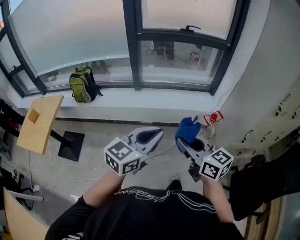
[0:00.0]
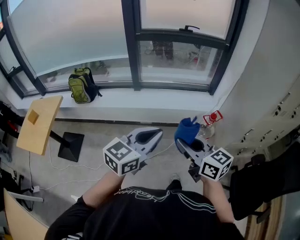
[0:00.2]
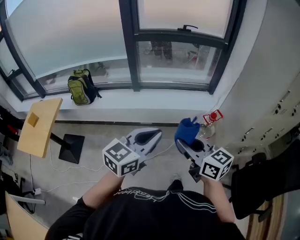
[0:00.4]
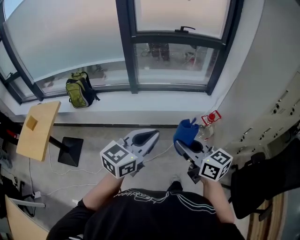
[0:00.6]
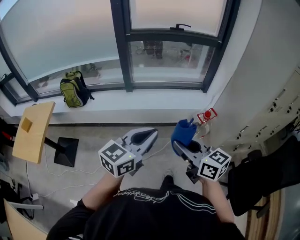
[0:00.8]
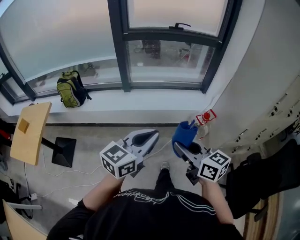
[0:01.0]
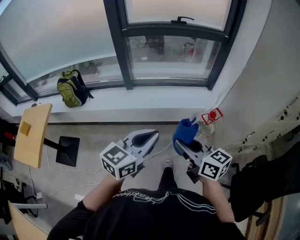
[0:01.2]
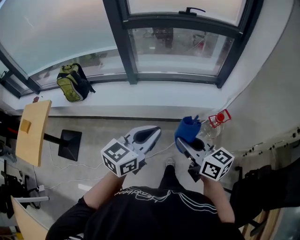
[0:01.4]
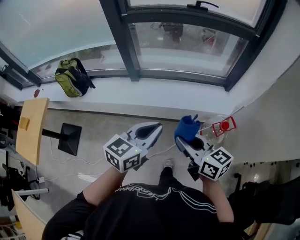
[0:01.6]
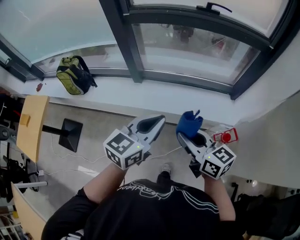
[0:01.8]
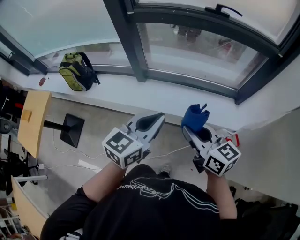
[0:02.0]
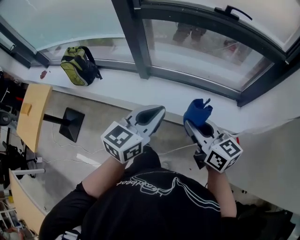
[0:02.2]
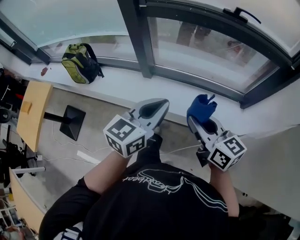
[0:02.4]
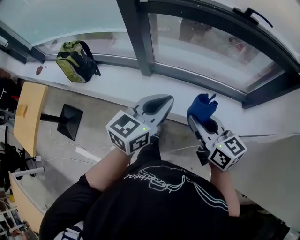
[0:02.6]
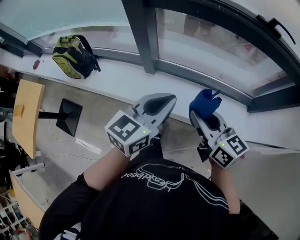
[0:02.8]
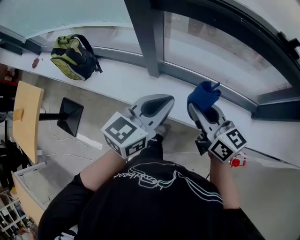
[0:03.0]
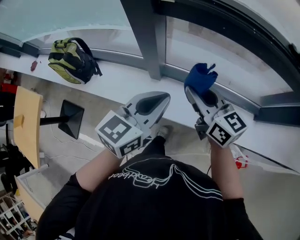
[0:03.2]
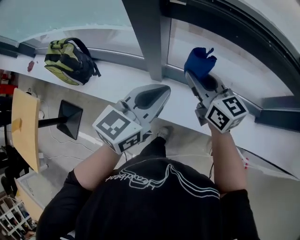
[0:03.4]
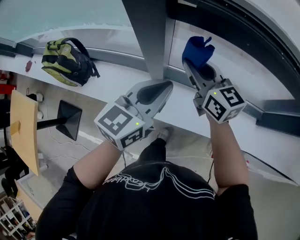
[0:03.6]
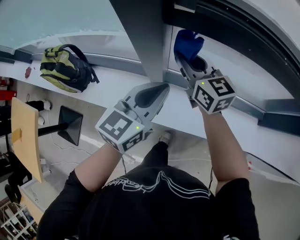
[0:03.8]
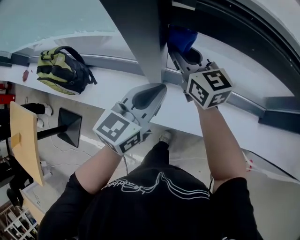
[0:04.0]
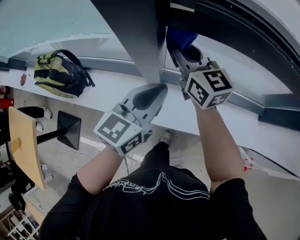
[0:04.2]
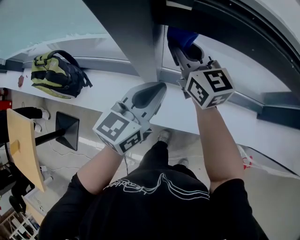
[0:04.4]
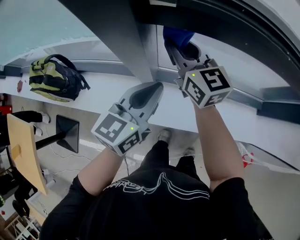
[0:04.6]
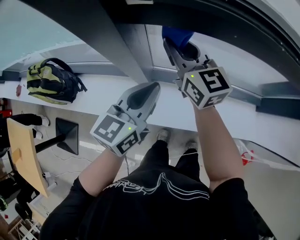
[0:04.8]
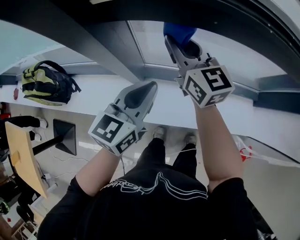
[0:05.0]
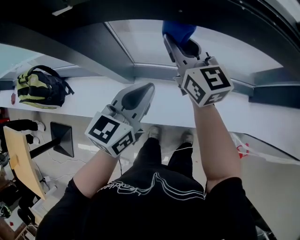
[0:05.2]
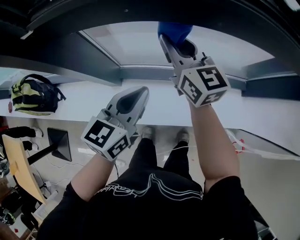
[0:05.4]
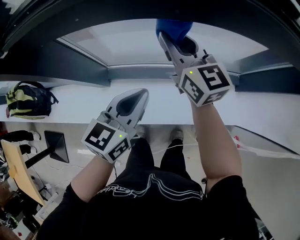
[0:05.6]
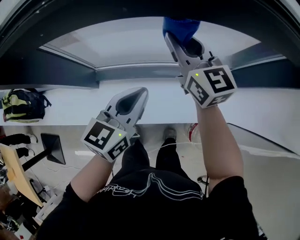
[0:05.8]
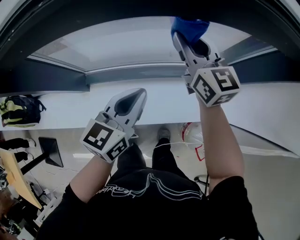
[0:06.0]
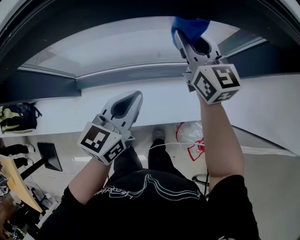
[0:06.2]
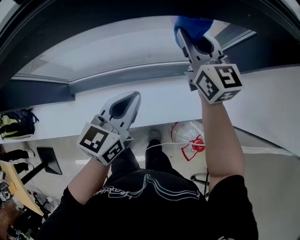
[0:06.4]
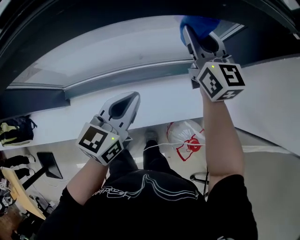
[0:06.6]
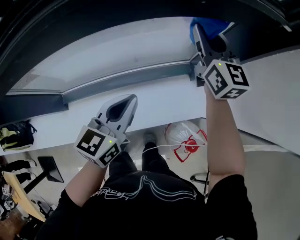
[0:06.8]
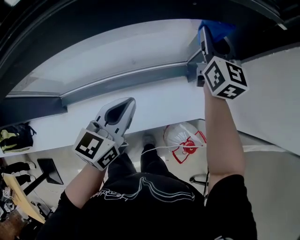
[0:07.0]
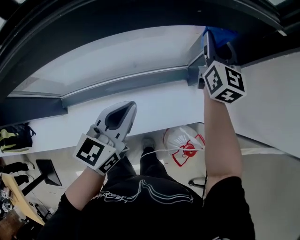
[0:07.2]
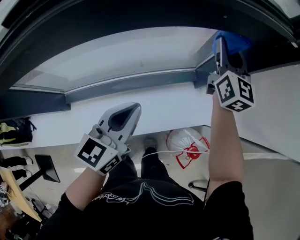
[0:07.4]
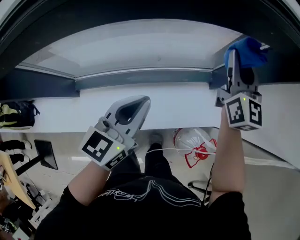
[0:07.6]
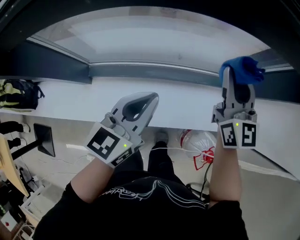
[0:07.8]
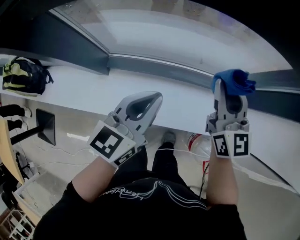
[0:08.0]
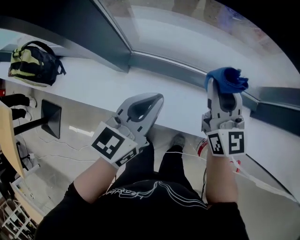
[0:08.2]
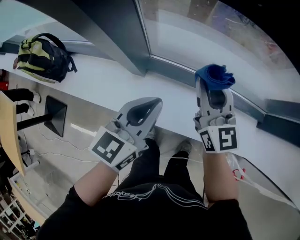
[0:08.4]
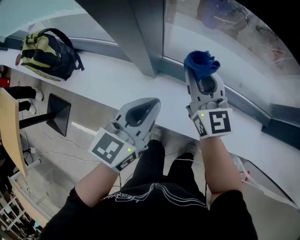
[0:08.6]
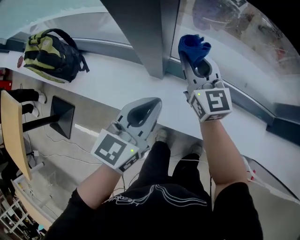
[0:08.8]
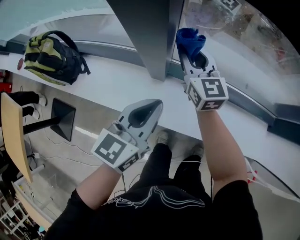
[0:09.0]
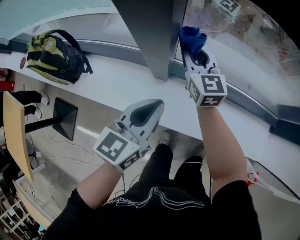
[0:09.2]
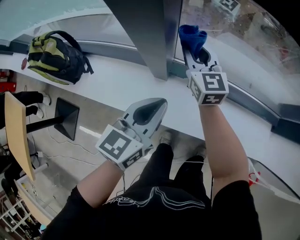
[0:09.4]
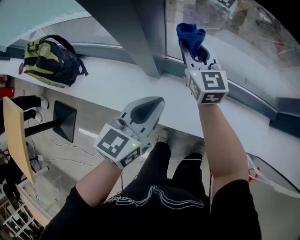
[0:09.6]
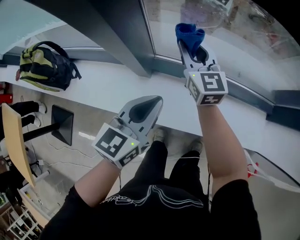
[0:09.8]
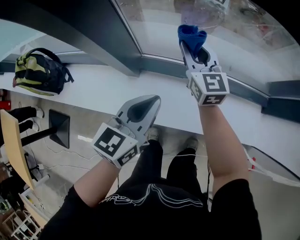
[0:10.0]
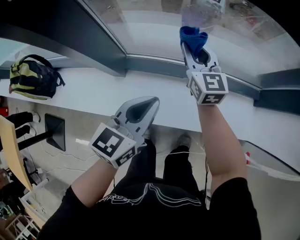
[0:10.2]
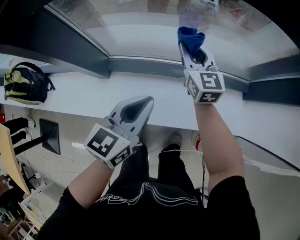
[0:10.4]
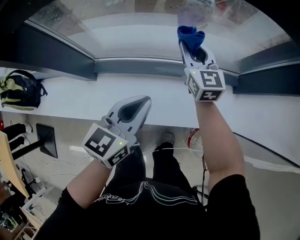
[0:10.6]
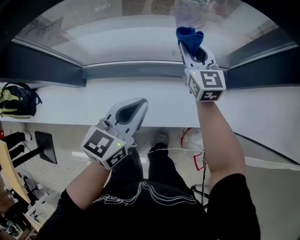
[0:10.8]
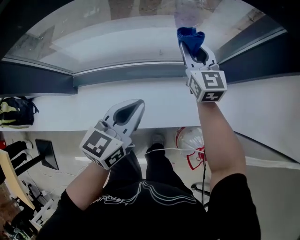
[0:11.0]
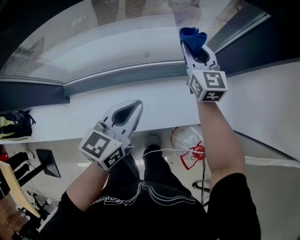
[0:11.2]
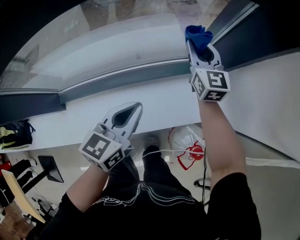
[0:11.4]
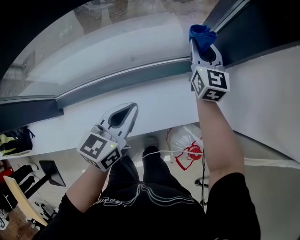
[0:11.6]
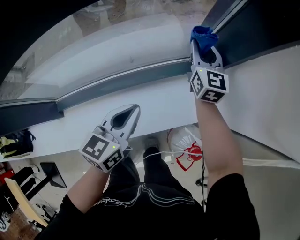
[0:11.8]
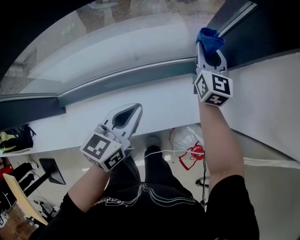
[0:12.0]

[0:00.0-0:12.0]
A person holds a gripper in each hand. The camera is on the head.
0:00.0 to 0:01.6: Both grippers move forward, roughly 30 cm.
0:01.6 to 0:03.0: Both grippers move forward, approximately 40 cm.
0:03.0 to 0:04.4: The right gripper heads forward, covering some 30 cm, and swivels some 20 degrees; the left gripper shifts about 15 cm forward.
0:04.4 to 0:06.0: The two grippers go some 40 cm to the right.
0:06.0 to 0:07.6: The left gripper shifts some 5 cm to the right, while the right gripper goes approximately 20 cm to the right, and changes its angle by roughly 30 degrees.
0:07.6 to 0:09.0: Both grippers are carried roughly 60 cm. The left gripper swivels approximately 20 degrees. The right gripper swivels roughly 40 degrees.
0:09.0 to 0:10.4: Both grippers travel together to the right, approximately 30 cm.
0:10.4 to 0:12.0: The left gripper moves to the right and forward, roughly 30 cm; the right gripper goes roughly 40 cm to the right, and rotates roughly 30 degrees.

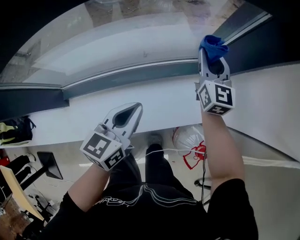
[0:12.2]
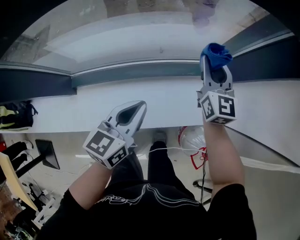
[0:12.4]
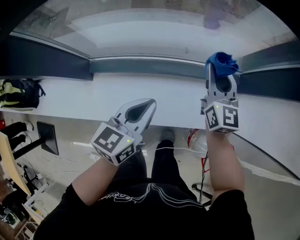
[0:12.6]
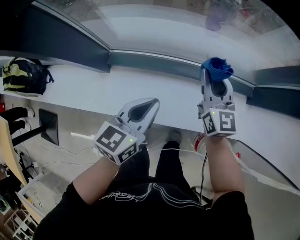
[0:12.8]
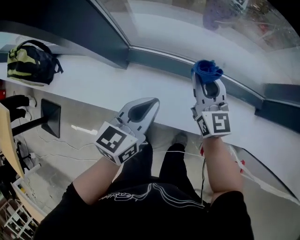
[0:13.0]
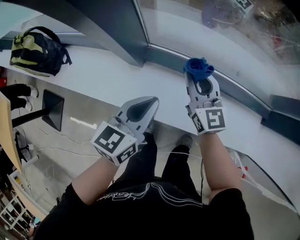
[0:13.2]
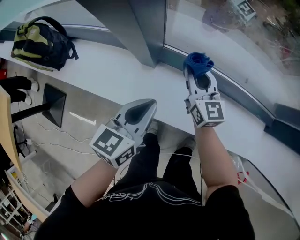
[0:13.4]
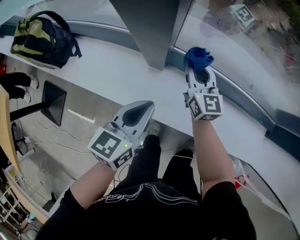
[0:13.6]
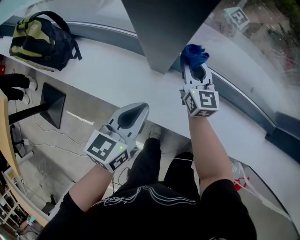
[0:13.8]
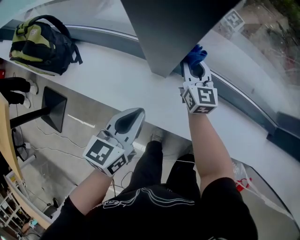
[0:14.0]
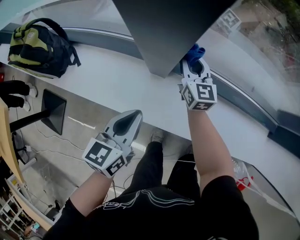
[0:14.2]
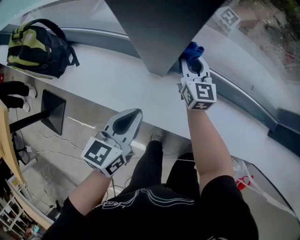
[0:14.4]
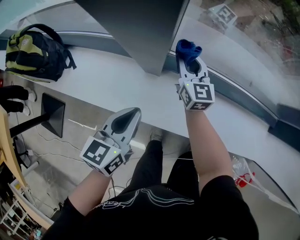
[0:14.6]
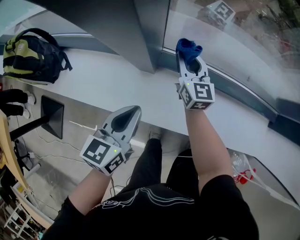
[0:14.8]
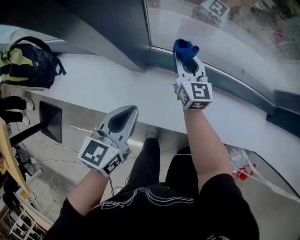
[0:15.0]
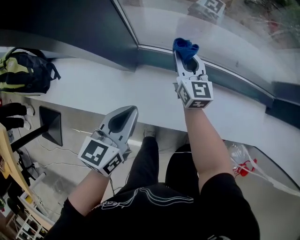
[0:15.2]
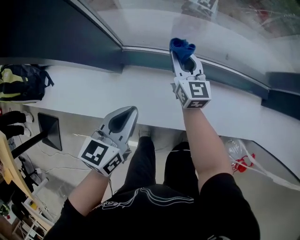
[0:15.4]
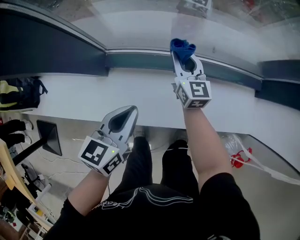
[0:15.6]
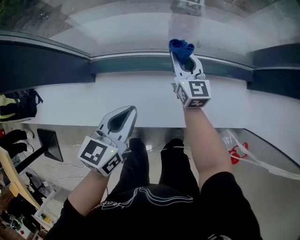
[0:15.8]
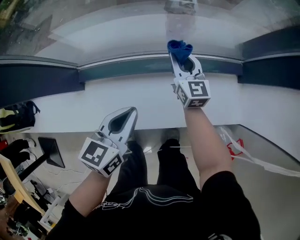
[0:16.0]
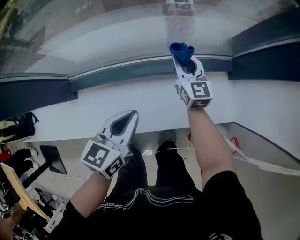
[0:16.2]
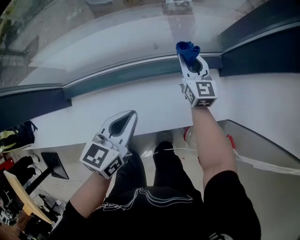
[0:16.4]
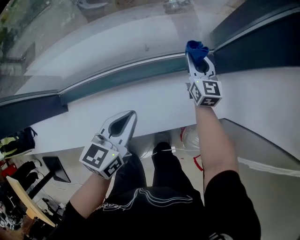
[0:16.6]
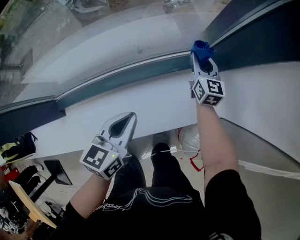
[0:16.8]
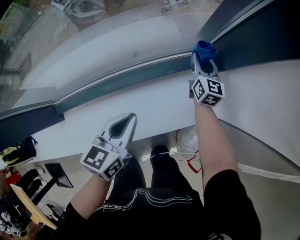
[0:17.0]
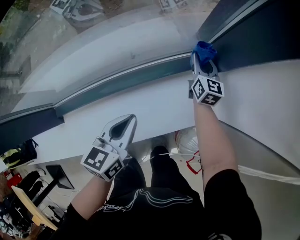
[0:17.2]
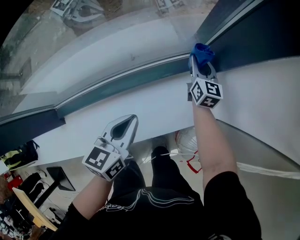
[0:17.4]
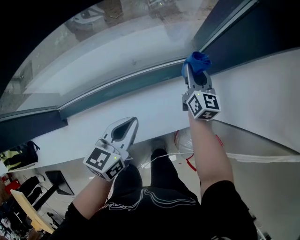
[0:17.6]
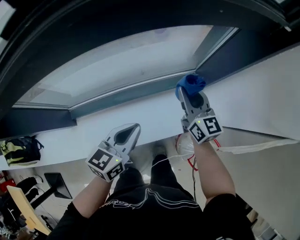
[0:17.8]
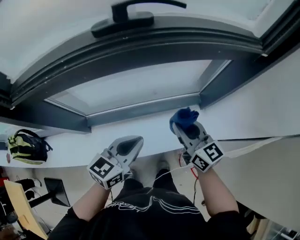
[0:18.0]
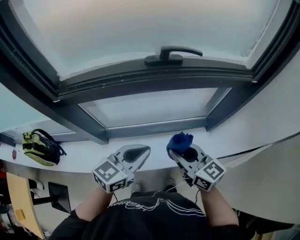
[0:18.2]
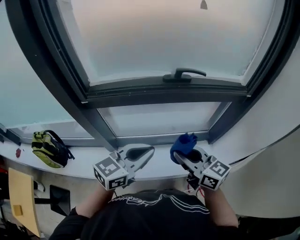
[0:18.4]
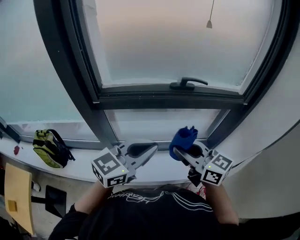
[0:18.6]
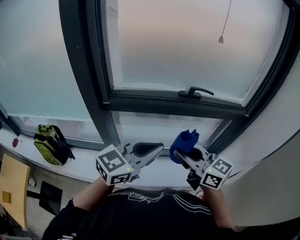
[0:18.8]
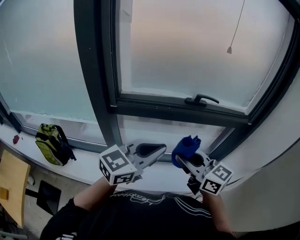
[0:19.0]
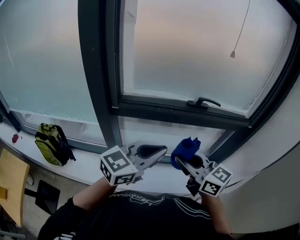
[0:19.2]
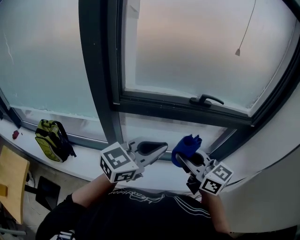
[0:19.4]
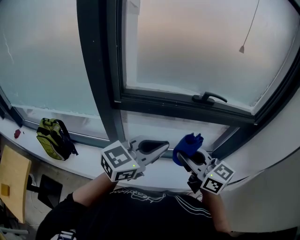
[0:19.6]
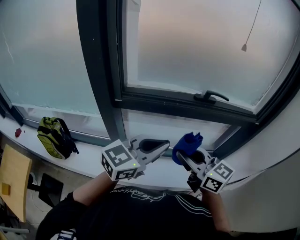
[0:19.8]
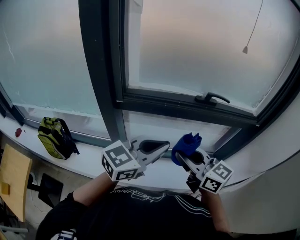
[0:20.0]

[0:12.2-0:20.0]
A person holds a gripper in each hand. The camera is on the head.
0:12.2 to 0:13.8: The pair of grippers is taken approximately 60 cm. The right gripper rotates roughly 40 degrees. Meanwhile the left gripper rotates about 30 degrees.
0:13.8 to 0:15.4: Both grippers move to the right, roughly 20 cm.
0:15.4 to 0:16.8: The right gripper moves some 60 cm, and turns by about 30 degrees. Meanwhile the left gripper changes place by approximately 40 cm, and turns by roughly 20 degrees.
0:16.8 to 0:18.4: The right gripper shifts roughly 70 cm upward, backward and to the left, and turns by approximately 50 degrees, while the left gripper goes some 50 cm upward and backward, and swivels about 30 degrees.
0:18.4 to 0:20.0: The left gripper is displaced upward and to the left by about 10 cm; the right gripper heads to the left and upward, covering about 15 cm.

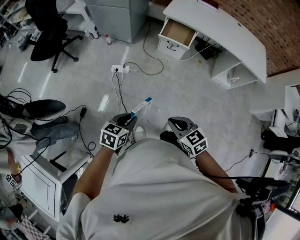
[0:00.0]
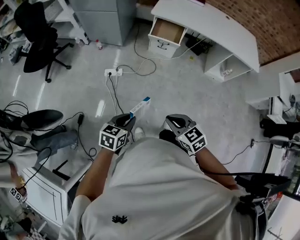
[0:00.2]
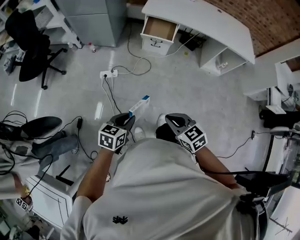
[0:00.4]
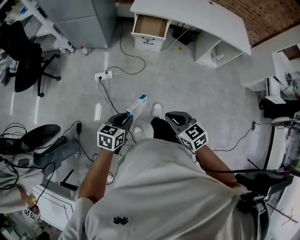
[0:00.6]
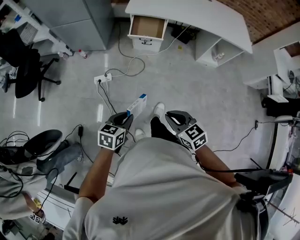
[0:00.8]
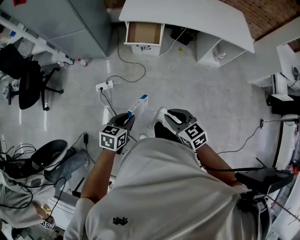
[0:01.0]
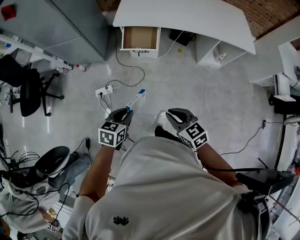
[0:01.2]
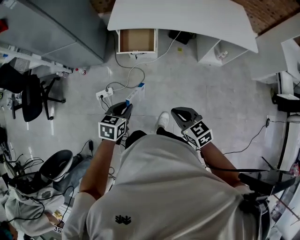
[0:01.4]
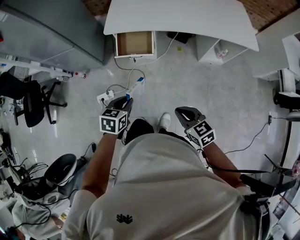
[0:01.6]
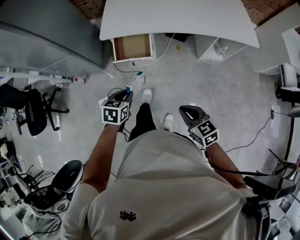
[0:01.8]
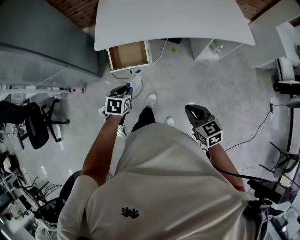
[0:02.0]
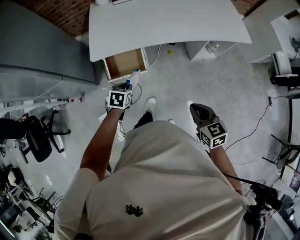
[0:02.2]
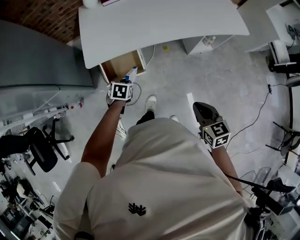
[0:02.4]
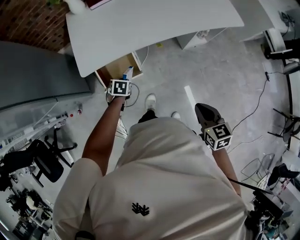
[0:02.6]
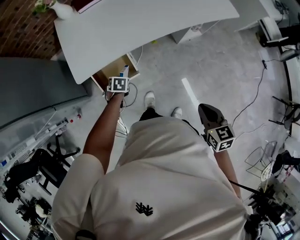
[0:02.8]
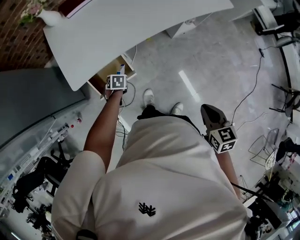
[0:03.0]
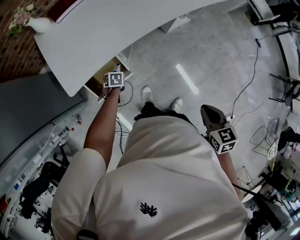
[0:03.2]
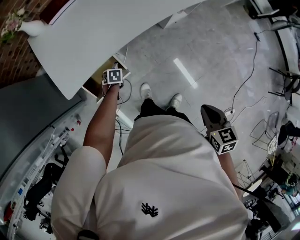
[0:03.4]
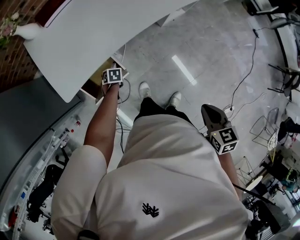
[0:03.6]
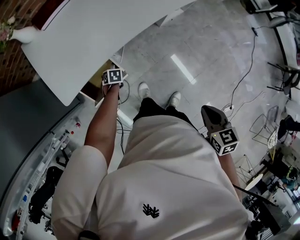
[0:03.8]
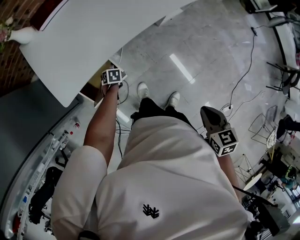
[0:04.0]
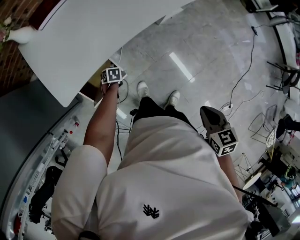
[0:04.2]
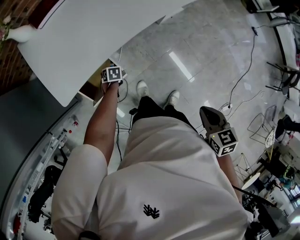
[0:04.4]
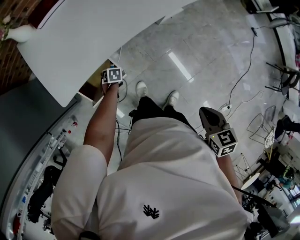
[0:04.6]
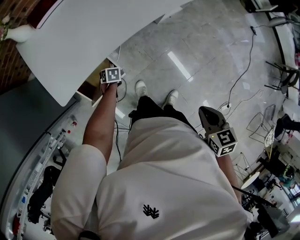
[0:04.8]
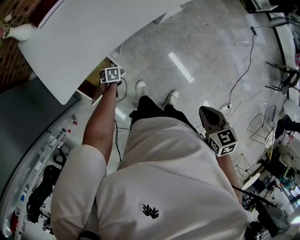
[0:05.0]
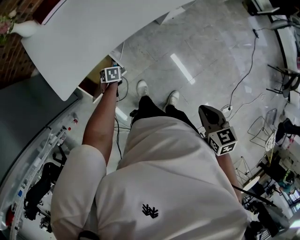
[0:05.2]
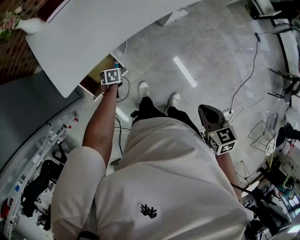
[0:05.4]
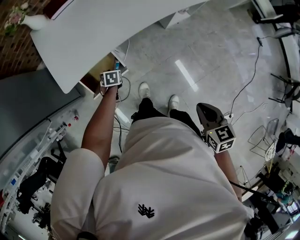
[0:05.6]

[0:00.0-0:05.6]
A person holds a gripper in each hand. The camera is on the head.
0:00.0 to 0:01.4: The two grippers travel together, forward and to the right, roughly 40 cm.
0:01.4 to 0:02.8: The left gripper moves about 50 cm, and swivels some 30 degrees. The right gripper changes place by about 25 cm, and swivels about 50 degrees.
0:02.8 to 0:04.2: The right gripper shifts by roughly 5 cm, while the left gripper heads downward, covering approximately 15 cm.
0:04.2 to 0:05.6: The left gripper moves upward, roughly 5 cm.
